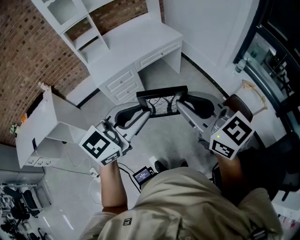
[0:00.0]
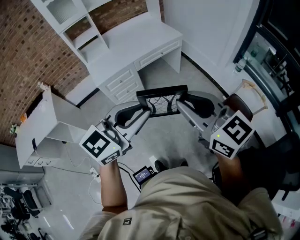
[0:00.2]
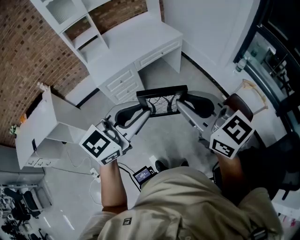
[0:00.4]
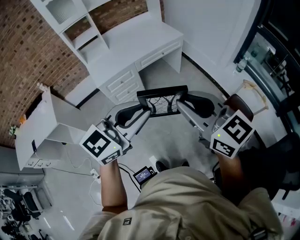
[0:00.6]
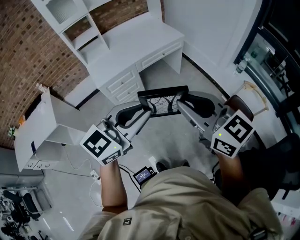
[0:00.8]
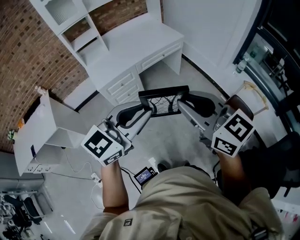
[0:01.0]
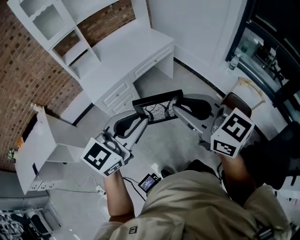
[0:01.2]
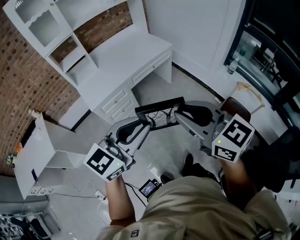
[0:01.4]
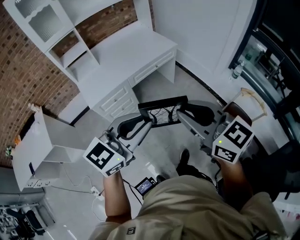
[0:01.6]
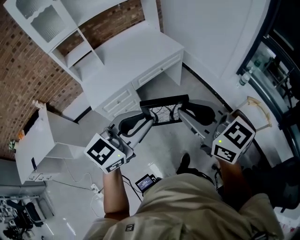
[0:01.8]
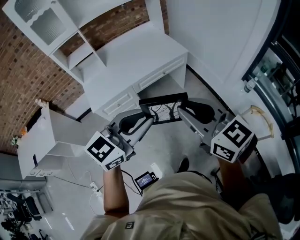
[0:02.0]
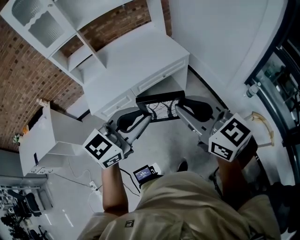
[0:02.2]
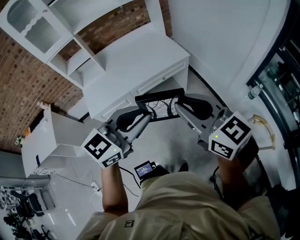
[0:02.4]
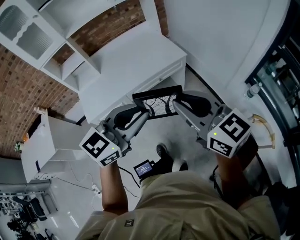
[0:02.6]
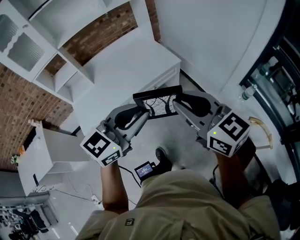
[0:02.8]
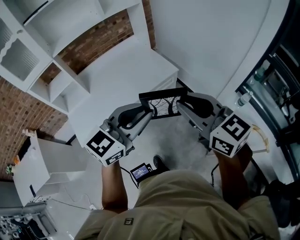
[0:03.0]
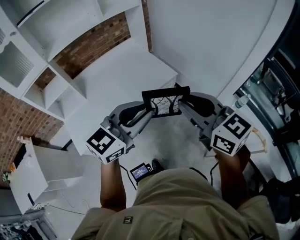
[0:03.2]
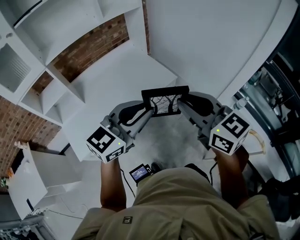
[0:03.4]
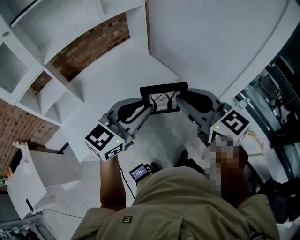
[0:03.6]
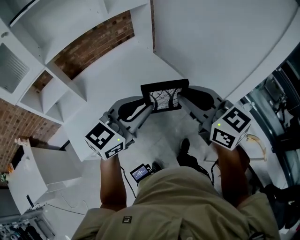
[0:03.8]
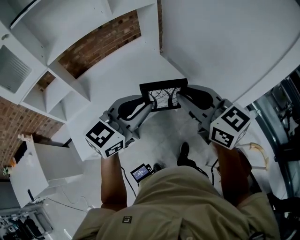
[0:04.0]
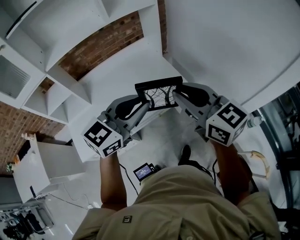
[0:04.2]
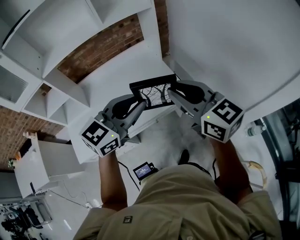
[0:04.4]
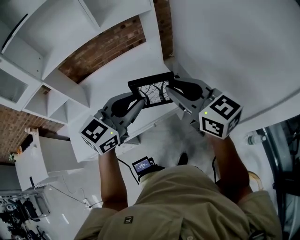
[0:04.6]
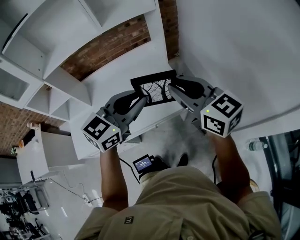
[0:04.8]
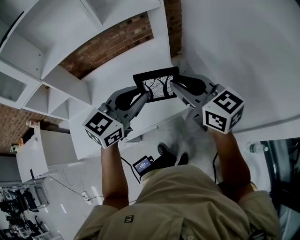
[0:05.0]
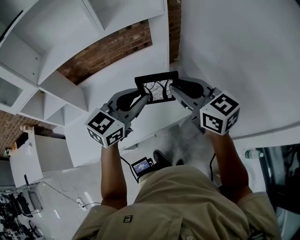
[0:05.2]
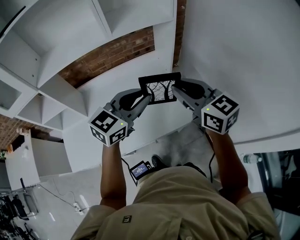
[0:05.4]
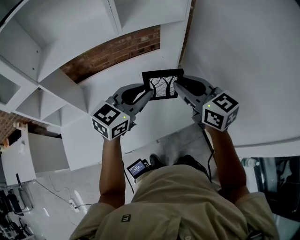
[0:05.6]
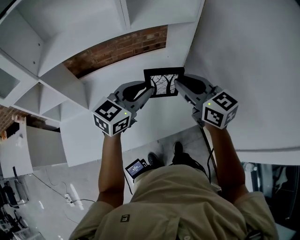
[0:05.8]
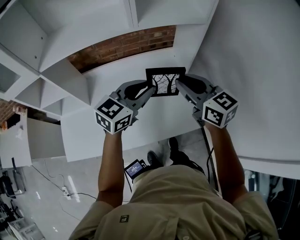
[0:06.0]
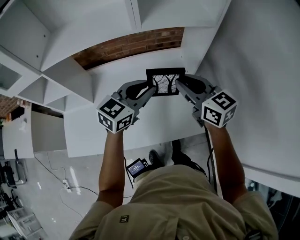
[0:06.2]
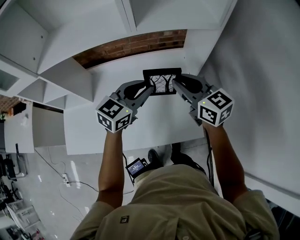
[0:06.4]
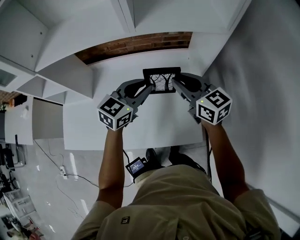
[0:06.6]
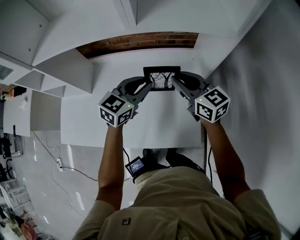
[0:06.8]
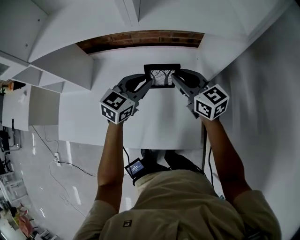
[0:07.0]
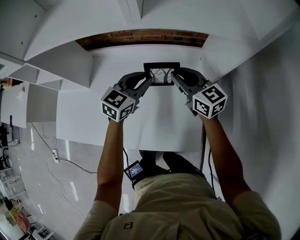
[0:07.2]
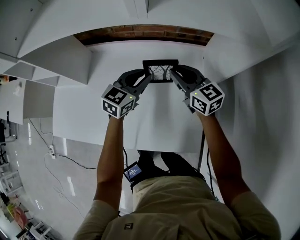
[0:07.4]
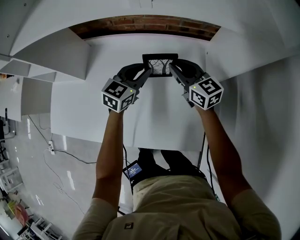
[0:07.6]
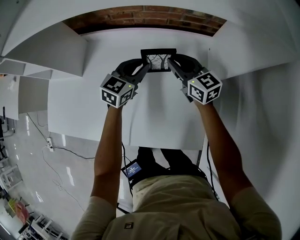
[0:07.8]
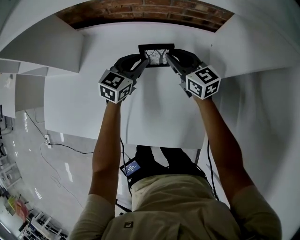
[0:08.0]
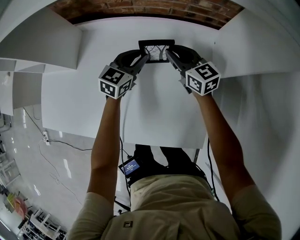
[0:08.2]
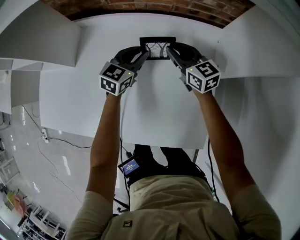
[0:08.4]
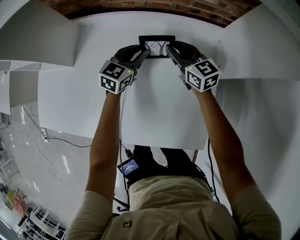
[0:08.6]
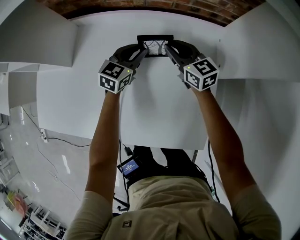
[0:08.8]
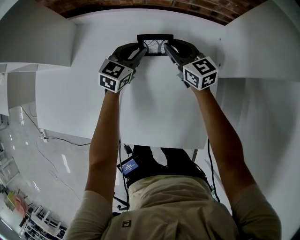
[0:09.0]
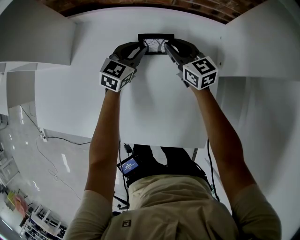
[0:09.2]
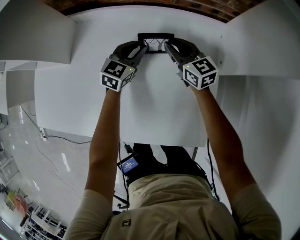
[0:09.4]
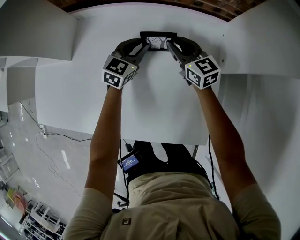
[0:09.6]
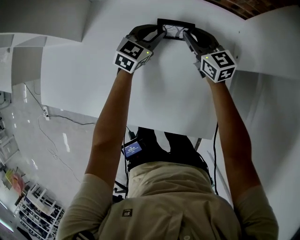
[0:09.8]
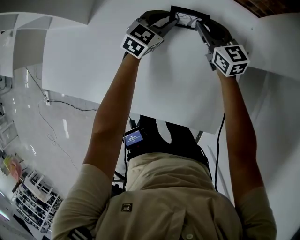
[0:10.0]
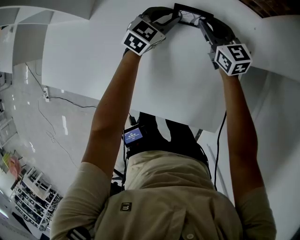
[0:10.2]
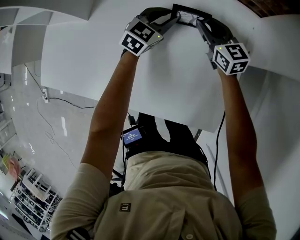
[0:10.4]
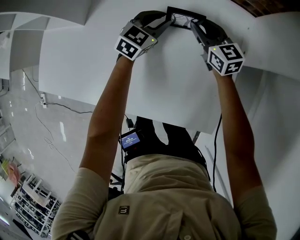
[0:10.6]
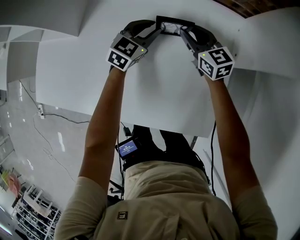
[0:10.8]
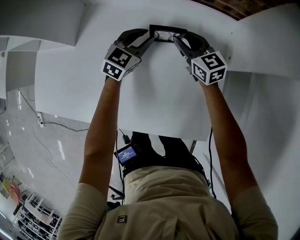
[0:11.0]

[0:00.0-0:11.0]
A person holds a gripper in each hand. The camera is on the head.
0:00.0 to 0:01.6: Both grippers travel together forward, about 15 cm.
0:01.6 to 0:03.2: Both grippers are carried forward, roughly 40 cm.
0:03.2 to 0:04.8: Both grippers move forward, roughly 35 cm. The left gripper turns by some 20 degrees.
0:04.8 to 0:06.2: The grippers both shift forward and to the left by approximately 25 cm.
0:06.2 to 0:07.8: Both grippers travel together downward and forward, some 30 cm. The left gripper rotates about 20 degrees.
0:07.8 to 0:09.4: The grippers both shift downward by approximately 10 cm.
0:09.4 to 0:11.0: The grippers stay close to where they were, moving slightly.

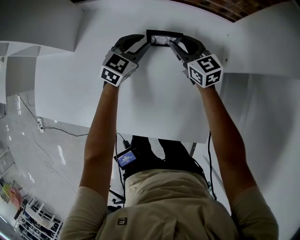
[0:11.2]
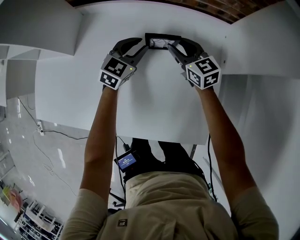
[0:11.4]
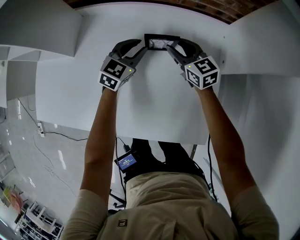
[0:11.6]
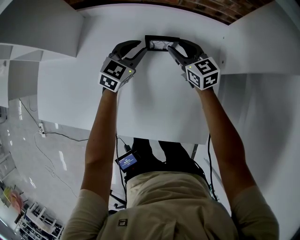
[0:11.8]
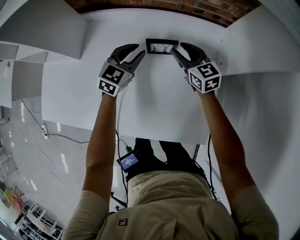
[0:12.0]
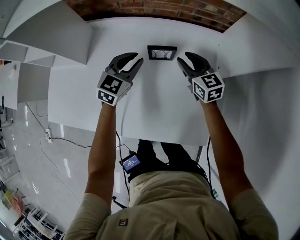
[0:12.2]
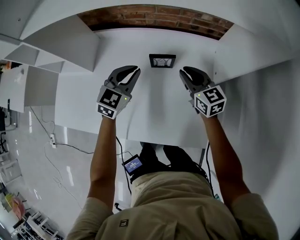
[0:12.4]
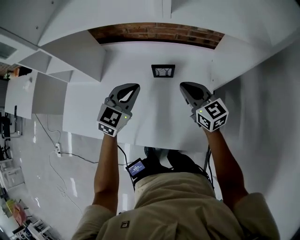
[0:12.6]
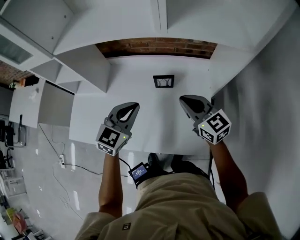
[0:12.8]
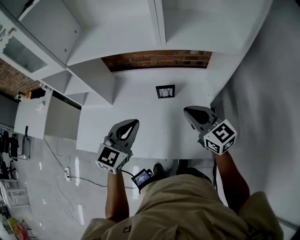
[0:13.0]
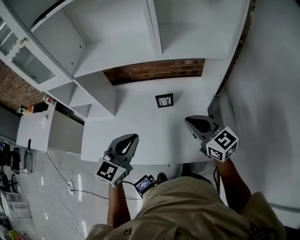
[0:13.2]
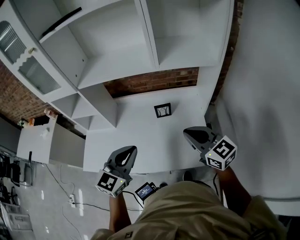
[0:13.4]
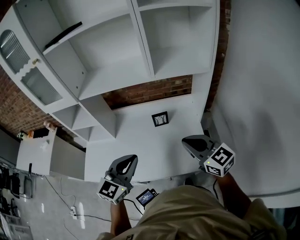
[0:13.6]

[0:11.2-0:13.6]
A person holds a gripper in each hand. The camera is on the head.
0:11.2 to 0:12.4: Both grippers move upward and backward, some 15 cm.
0:12.4 to 0:13.6: Both grippers move backward and upward, roughly 40 cm.

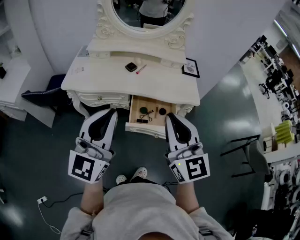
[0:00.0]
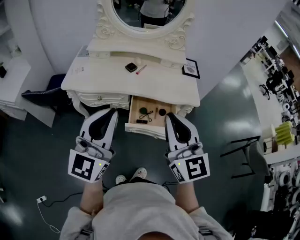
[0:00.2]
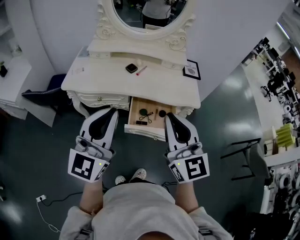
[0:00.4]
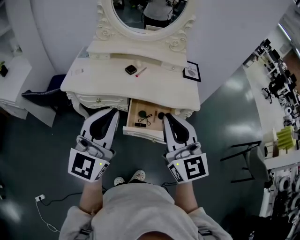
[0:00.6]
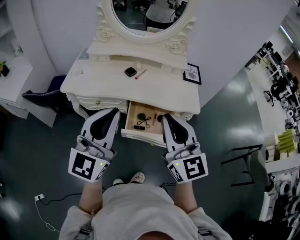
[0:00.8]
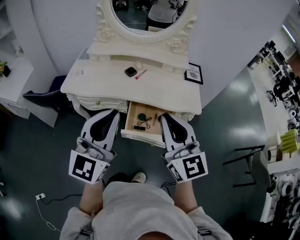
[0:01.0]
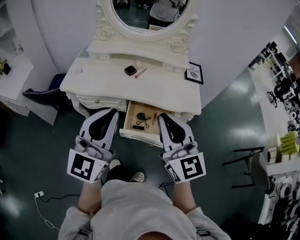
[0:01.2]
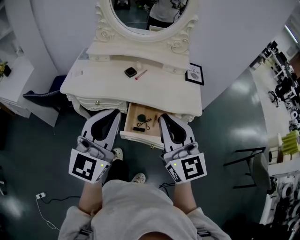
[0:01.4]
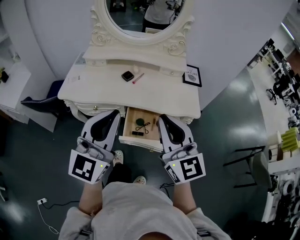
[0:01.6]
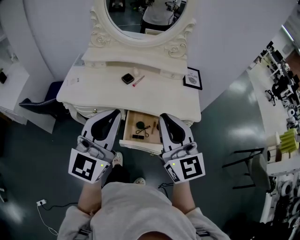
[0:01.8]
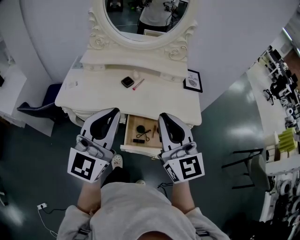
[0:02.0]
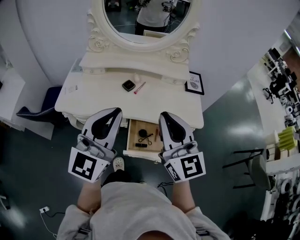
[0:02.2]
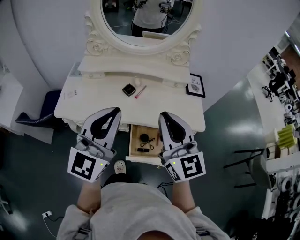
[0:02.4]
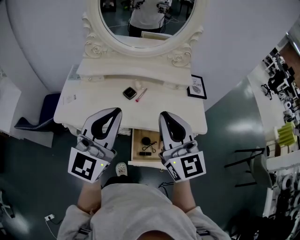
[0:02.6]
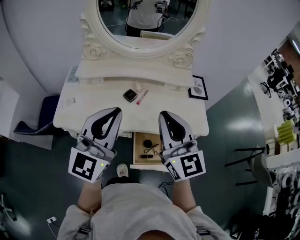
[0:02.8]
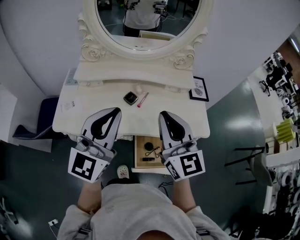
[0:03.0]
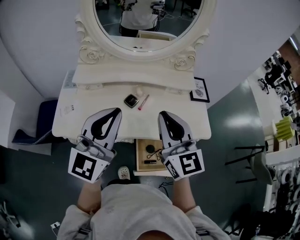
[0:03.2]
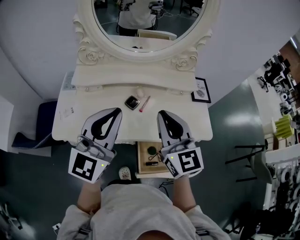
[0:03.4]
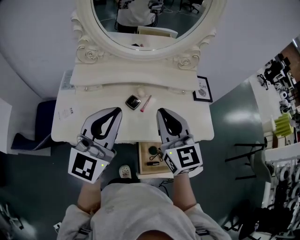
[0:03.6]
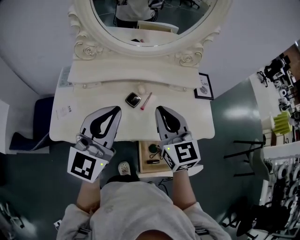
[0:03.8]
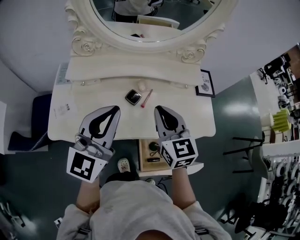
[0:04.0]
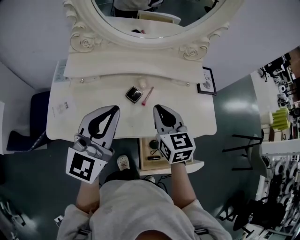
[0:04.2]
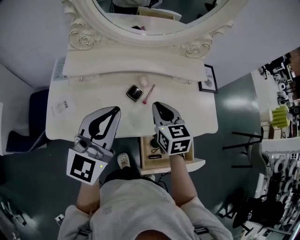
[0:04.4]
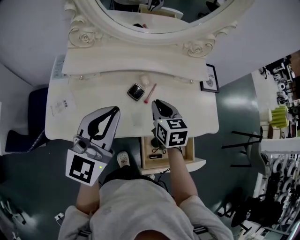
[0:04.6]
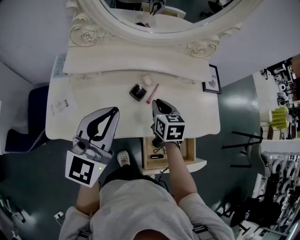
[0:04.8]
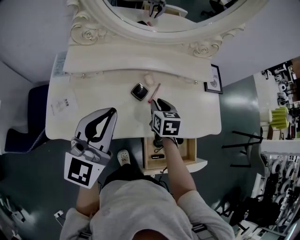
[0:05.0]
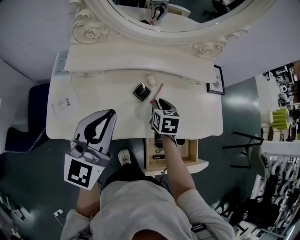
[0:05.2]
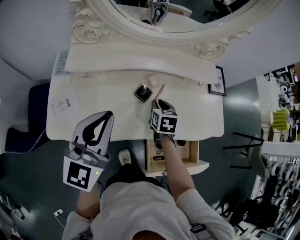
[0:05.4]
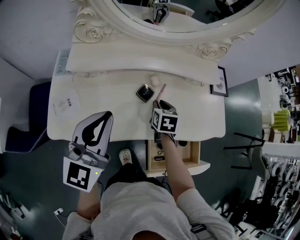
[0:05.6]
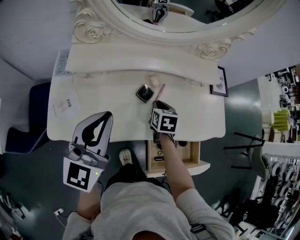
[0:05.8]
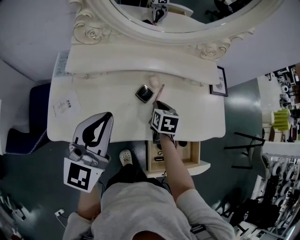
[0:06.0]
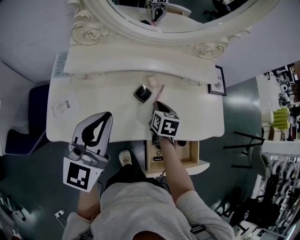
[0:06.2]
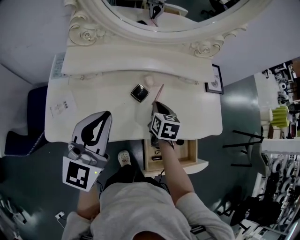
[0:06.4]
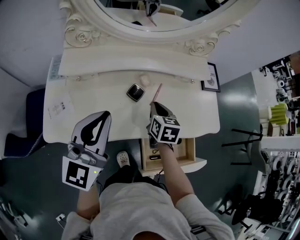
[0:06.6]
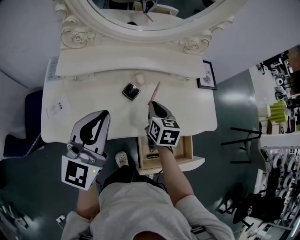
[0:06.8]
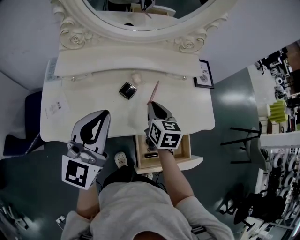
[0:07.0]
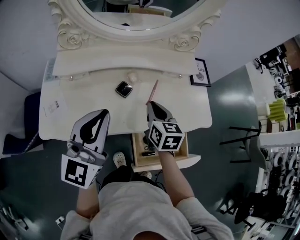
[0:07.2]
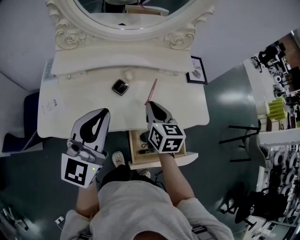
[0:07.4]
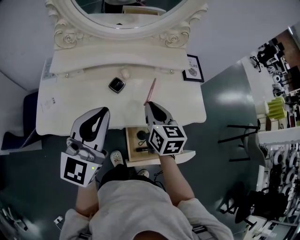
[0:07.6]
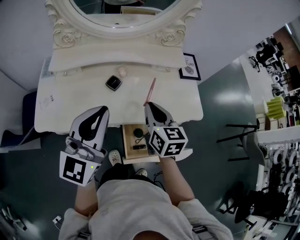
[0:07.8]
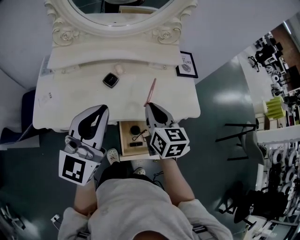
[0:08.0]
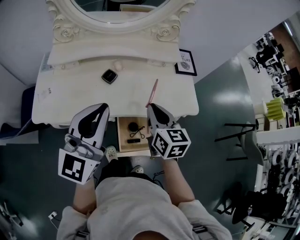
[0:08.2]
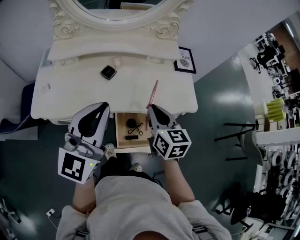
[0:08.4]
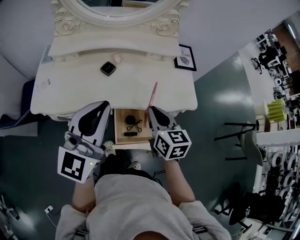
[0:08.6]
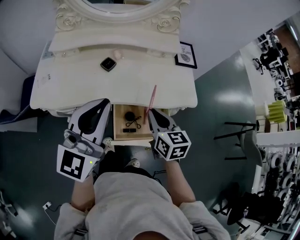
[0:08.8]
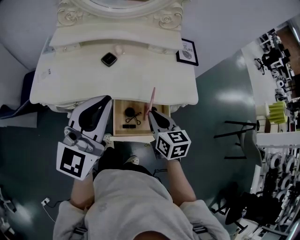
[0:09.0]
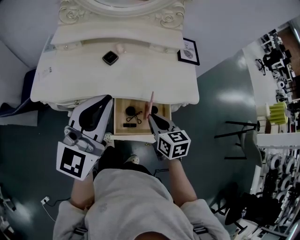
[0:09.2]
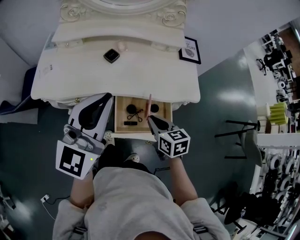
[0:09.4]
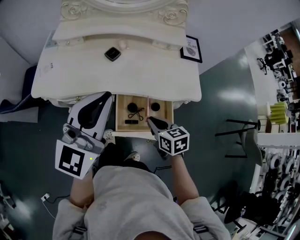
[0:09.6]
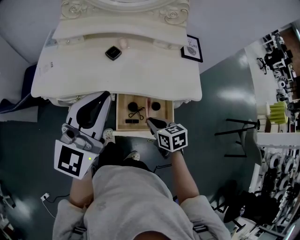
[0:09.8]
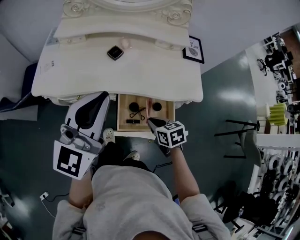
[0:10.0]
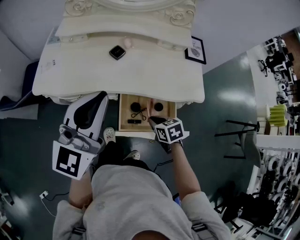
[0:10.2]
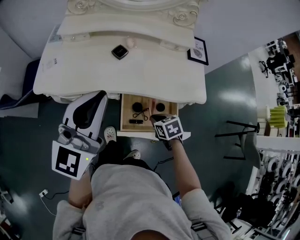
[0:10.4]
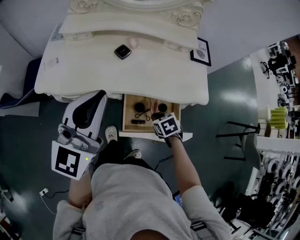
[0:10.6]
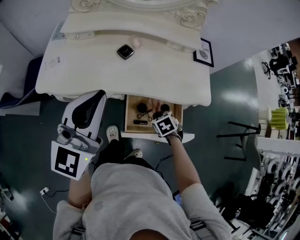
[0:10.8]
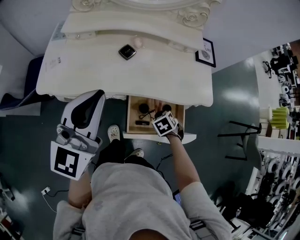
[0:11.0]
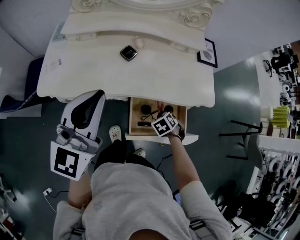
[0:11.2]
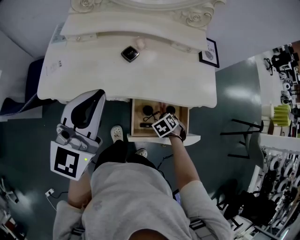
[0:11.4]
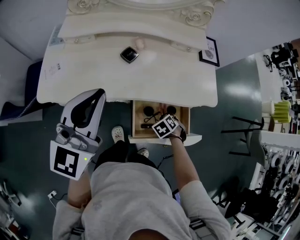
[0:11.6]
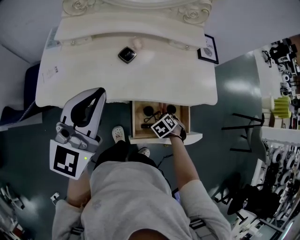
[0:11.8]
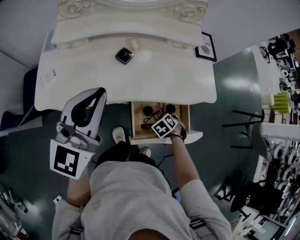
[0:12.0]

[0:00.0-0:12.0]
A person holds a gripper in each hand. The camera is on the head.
0:00.0 to 0:01.6: The right gripper shifts approximately 10 cm forward. The left gripper travels forward and to the right by roughly 10 cm.
0:01.6 to 0:03.0: The grippers both shift forward and to the left by roughly 20 cm.
0:03.0 to 0:04.4: The right gripper shifts some 25 cm downward and forward, and angles its fingers downward, by some 30 degrees; the left gripper goes approximately 10 cm forward, downward and to the left.
0:04.4 to 0:06.0: The left gripper shifts approximately 5 cm to the left. Meanwhile the right gripper travels downward by some 15 cm, and changes its angle by some 30 degrees.
0:06.0 to 0:07.6: The right gripper shifts approximately 20 cm upward, backward and to the right, and changes its angle by approximately 20 degrees; the left gripper heads to the right and upward, covering roughly 10 cm.
0:07.6 to 0:09.0: The left gripper is displaced to the right and backward by approximately 10 cm. The right gripper heads backward and to the right, covering approximately 15 cm.
0:09.0 to 0:10.4: The left gripper moves to the left, roughly 5 cm. The right gripper travels downward by about 15 cm, and points its fingers some 30 degrees further downward.
0:10.4 to 0:12.0: The left gripper moves roughly 10 cm. Meanwhile the right gripper heads downward, covering some 10 cm, and turns by about 30 degrees.
